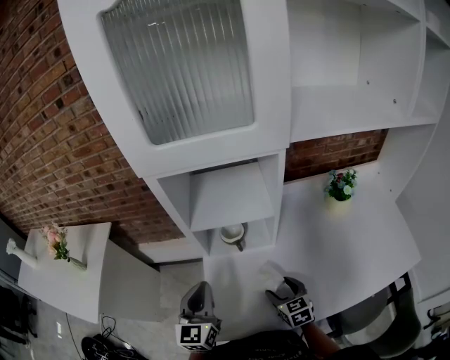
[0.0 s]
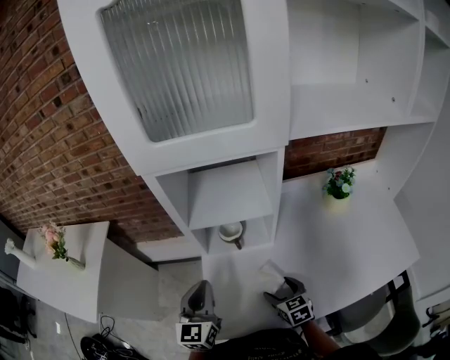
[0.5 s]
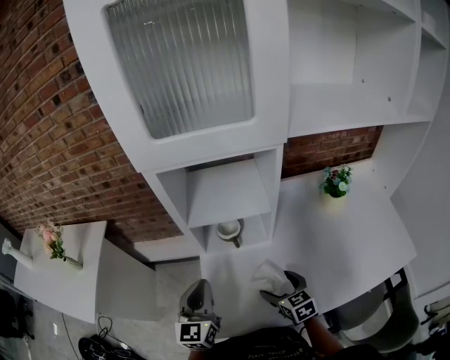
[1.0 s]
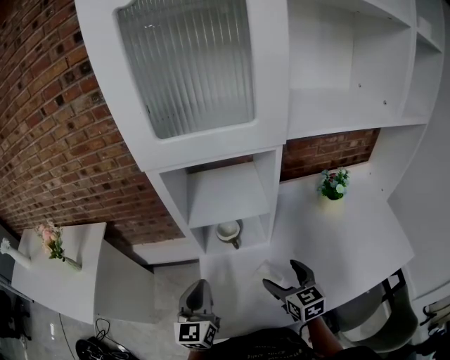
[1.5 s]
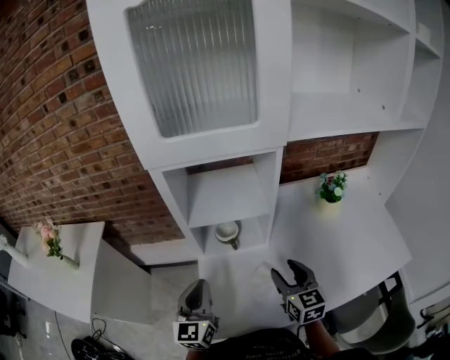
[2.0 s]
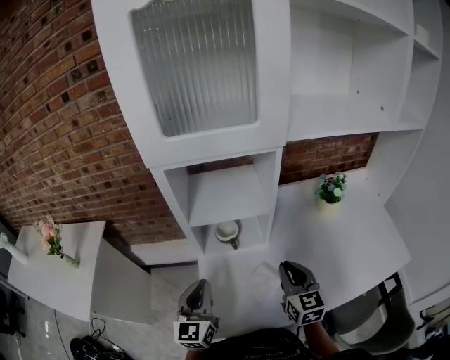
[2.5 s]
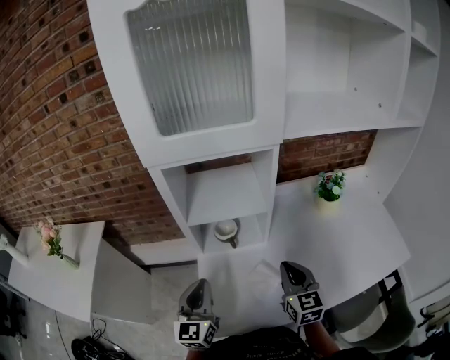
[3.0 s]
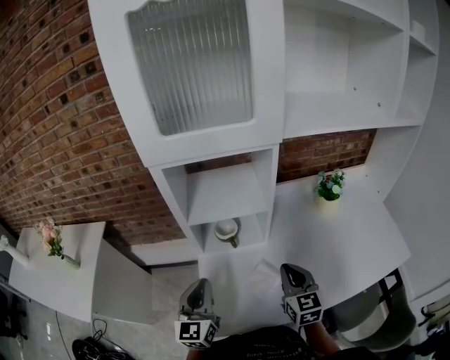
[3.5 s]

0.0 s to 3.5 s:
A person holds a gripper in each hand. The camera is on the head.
0.0 to 2.0 s: The right gripper shifts approximately 15 cm upward.
2.0 to 3.5 s: The right gripper closes.

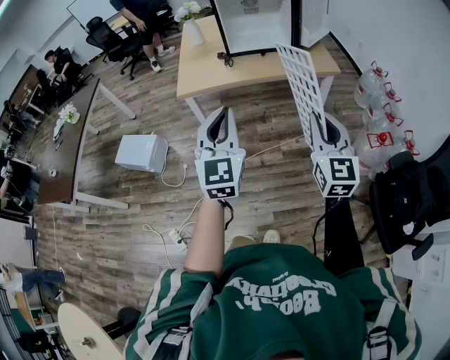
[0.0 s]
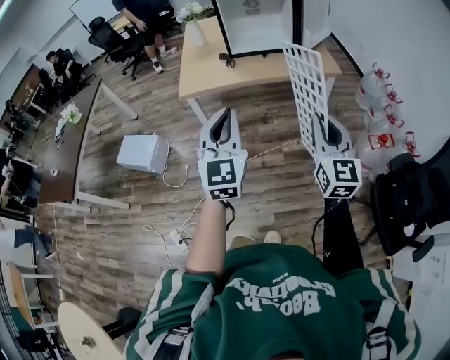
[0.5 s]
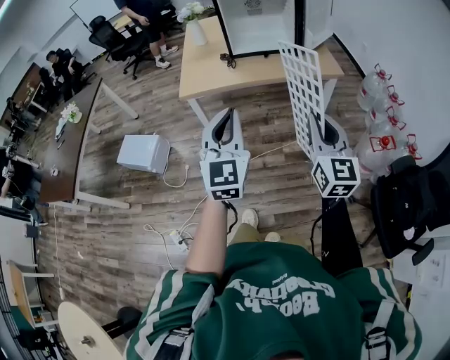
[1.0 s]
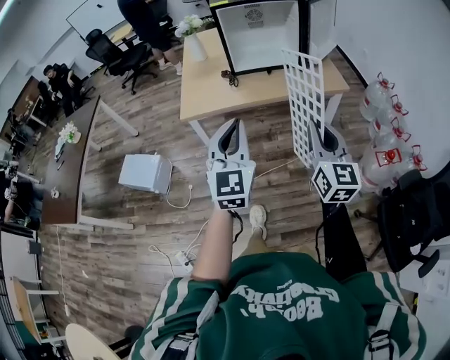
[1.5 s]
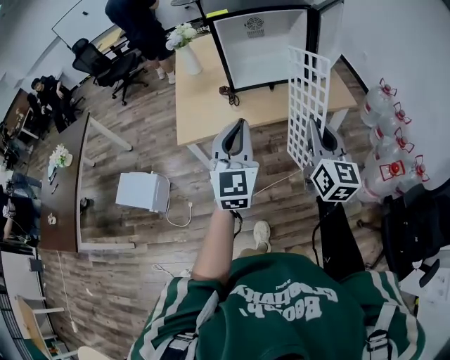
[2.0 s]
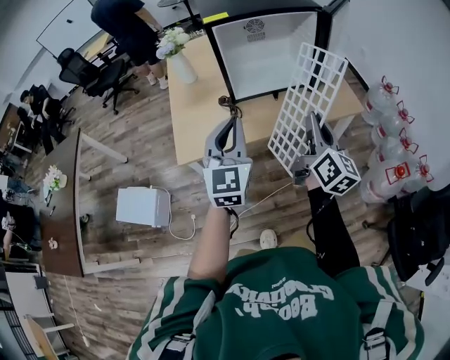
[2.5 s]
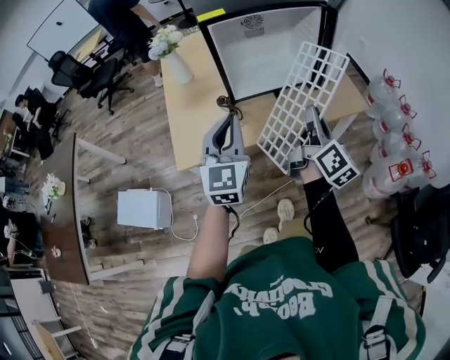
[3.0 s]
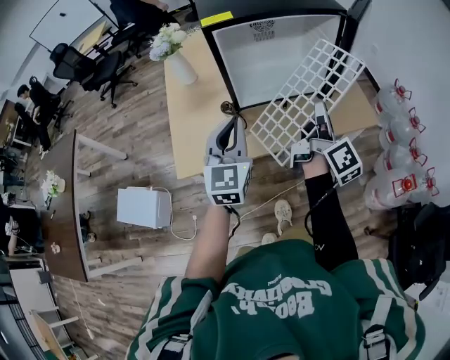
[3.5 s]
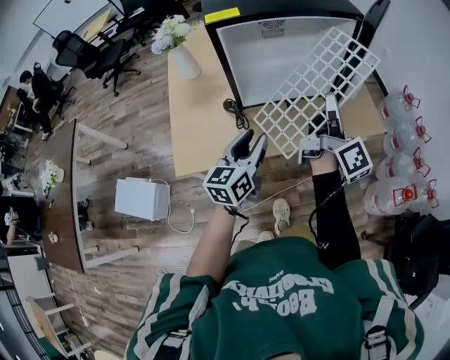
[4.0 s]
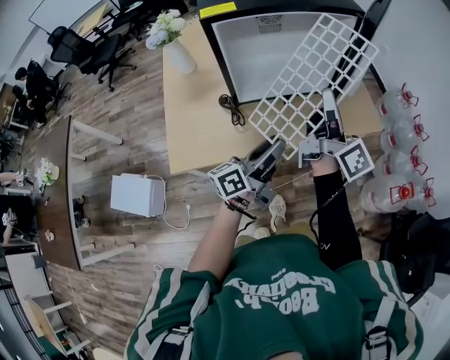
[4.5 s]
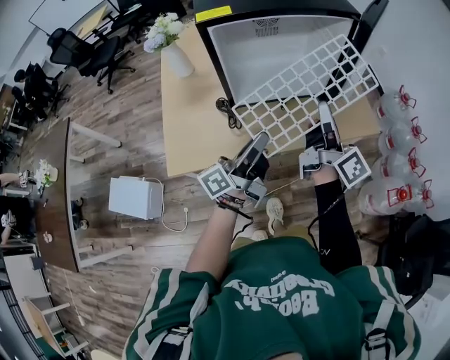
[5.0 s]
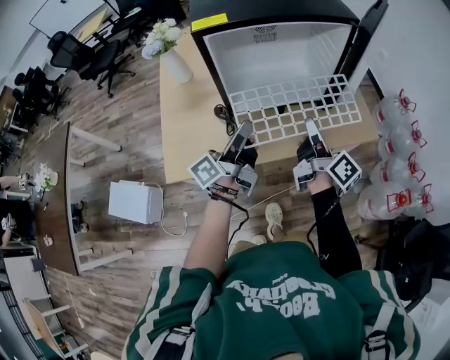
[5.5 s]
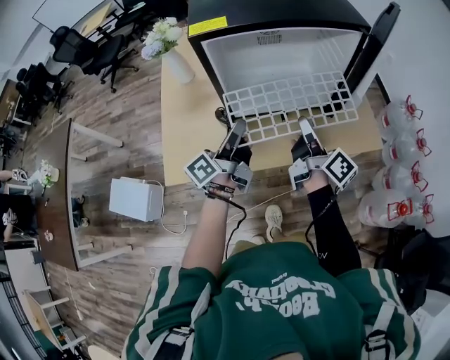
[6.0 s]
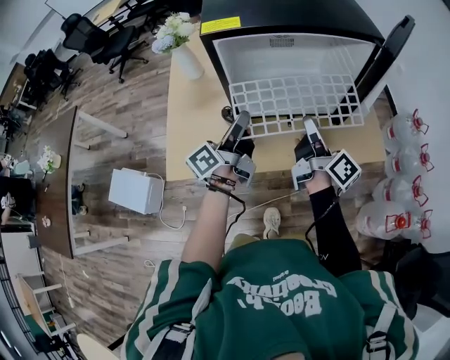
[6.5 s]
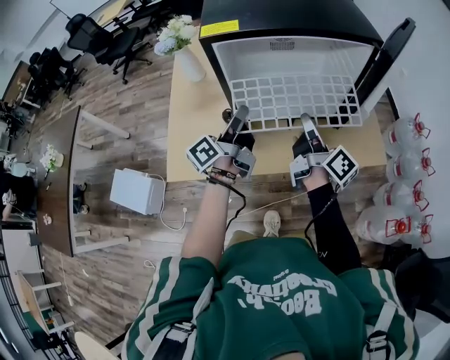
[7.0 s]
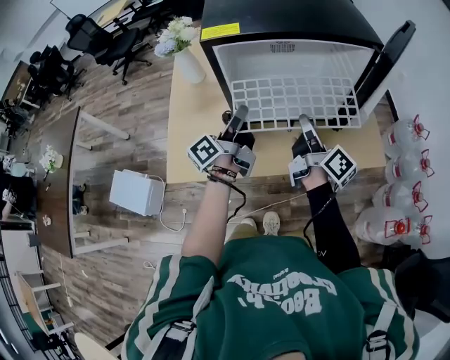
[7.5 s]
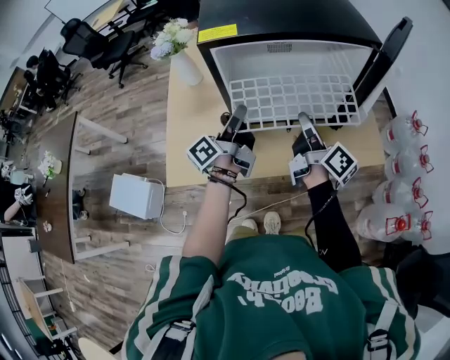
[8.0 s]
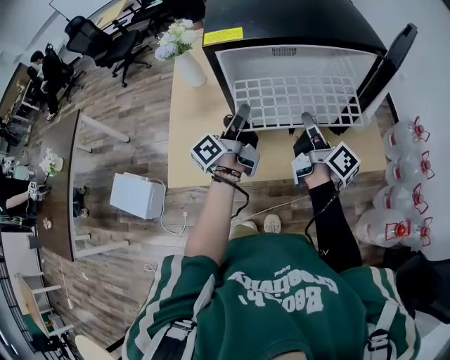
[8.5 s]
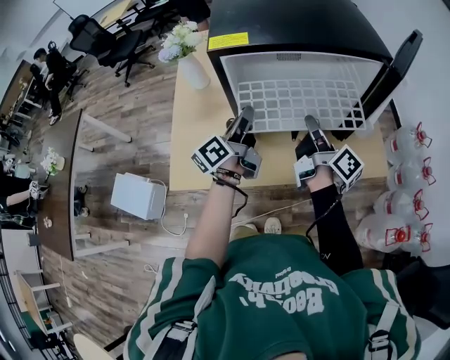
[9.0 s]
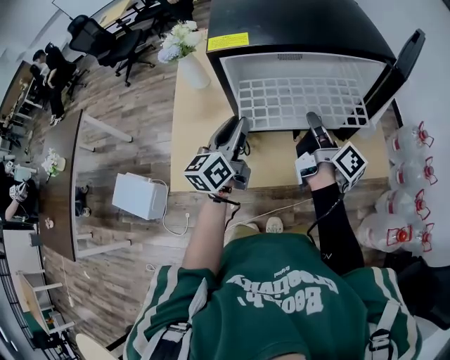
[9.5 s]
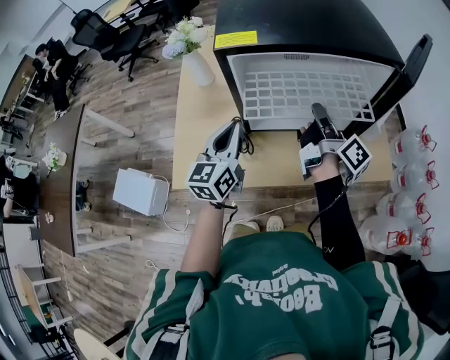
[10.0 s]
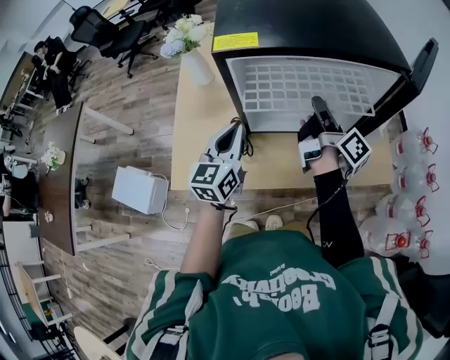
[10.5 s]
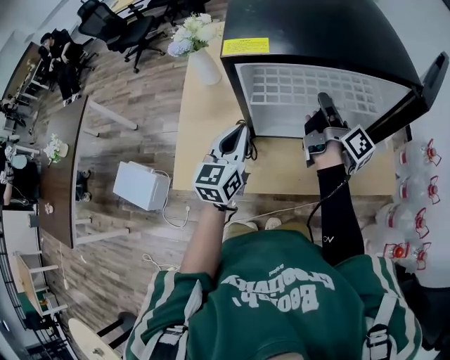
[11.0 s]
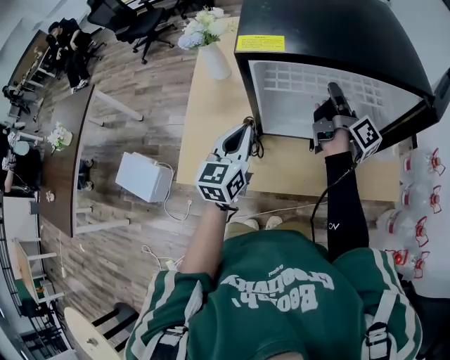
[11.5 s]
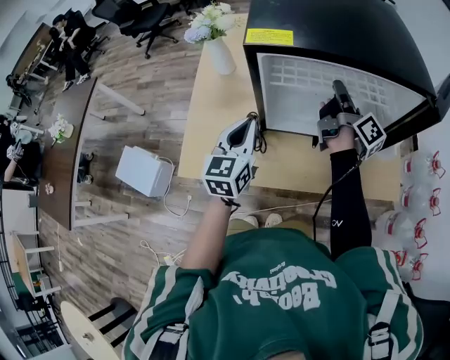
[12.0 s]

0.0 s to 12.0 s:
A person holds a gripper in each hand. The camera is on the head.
0.0 to 2.0 s: The grippers both shift forward by roughly 25 cm. The right gripper swivels some 20 degrees.
2.0 to 4.0 s: The left gripper heads forward and downward, covering some 30 cm, rotates approximately 40 degrees, and opens up. Meanwhile the right gripper shifts about 30 cm forward, and rolls clockwise, seen from behind, by roughly 50 degrees.
4.0 to 6.0 s: The right gripper moves downward, roughly 10 cm, and swivels about 30 degrees; the left gripper is displaced forward by some 10 cm, rolls counterclockwise, seen from behind, by about 40 degrees, and closes up.
6.0 to 8.0 s: The left gripper goes roughly 5 cm forward.
8.0 to 10.0 s: The left gripper changes place by roughly 5 cm, and rotates around the line of its fingers by roughly 60 degrees, clockwise from behind. Meanwhile the right gripper moves forward, about 5 cm.
10.0 to 12.0 s: The right gripper shifts roughly 10 cm forward.

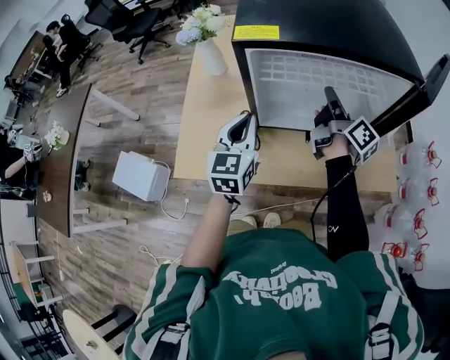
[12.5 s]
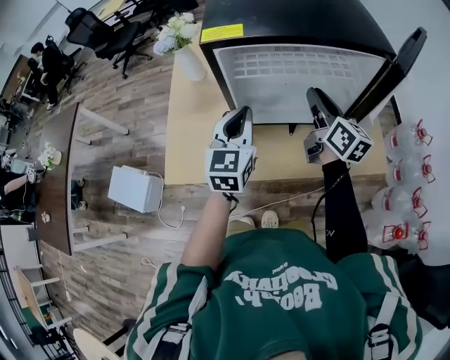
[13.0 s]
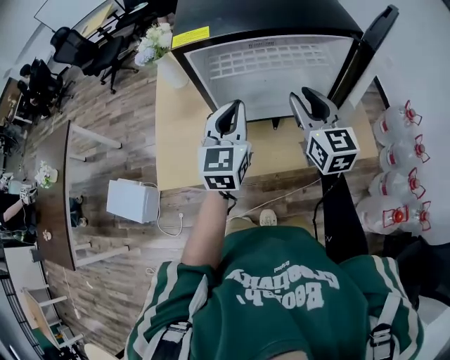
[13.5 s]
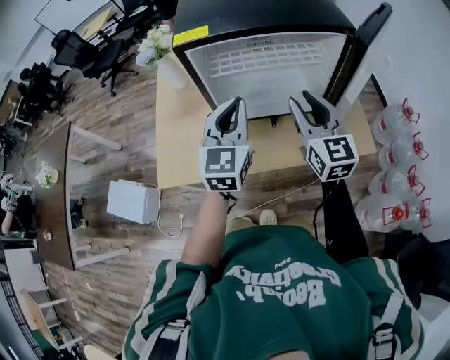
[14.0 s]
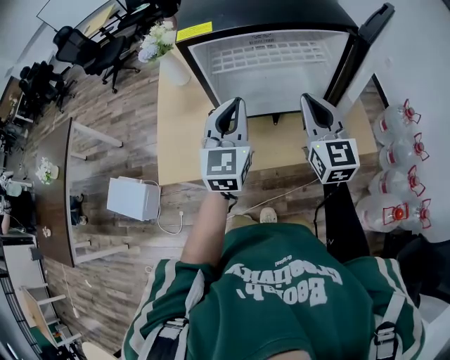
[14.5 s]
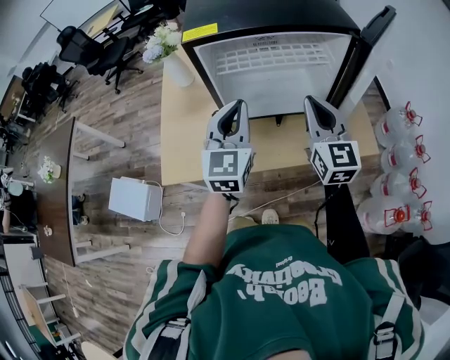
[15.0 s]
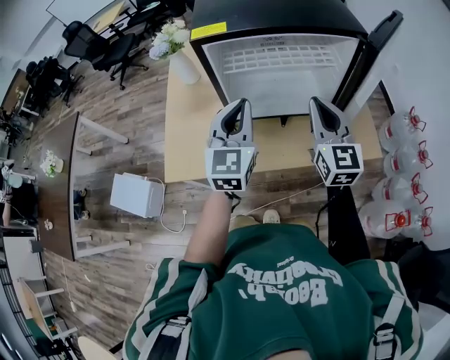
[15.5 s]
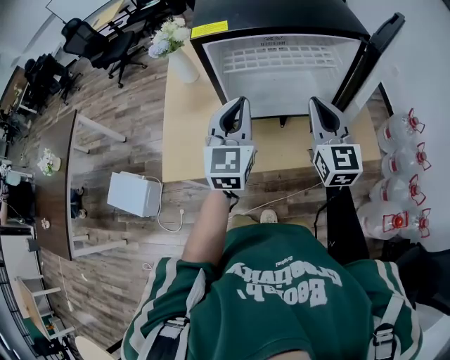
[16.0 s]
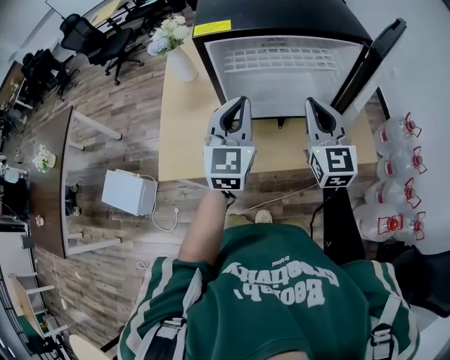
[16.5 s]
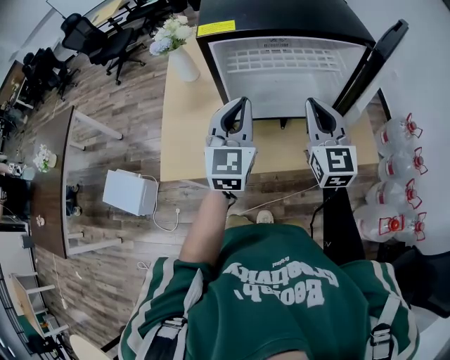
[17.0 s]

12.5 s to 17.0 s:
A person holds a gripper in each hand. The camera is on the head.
12.5 to 14.5 s: The right gripper travels backward and upward by approximately 15 cm, and twists roughly 70 degrees counterclockwise, seen from behind. Meanwhile the left gripper is displaced to the right and upward by about 10 cm.
14.5 to 17.0 s: The grippers move only a little.

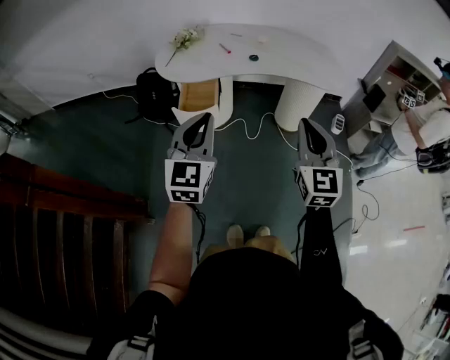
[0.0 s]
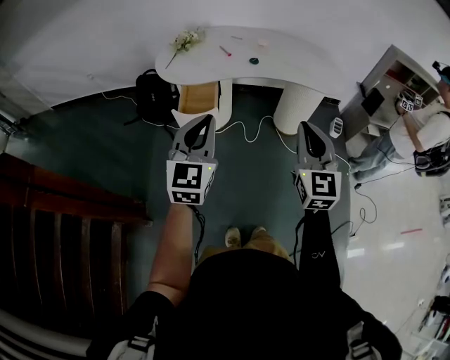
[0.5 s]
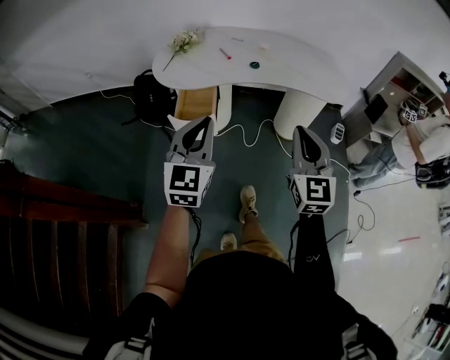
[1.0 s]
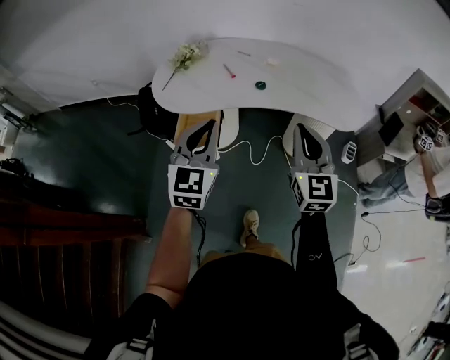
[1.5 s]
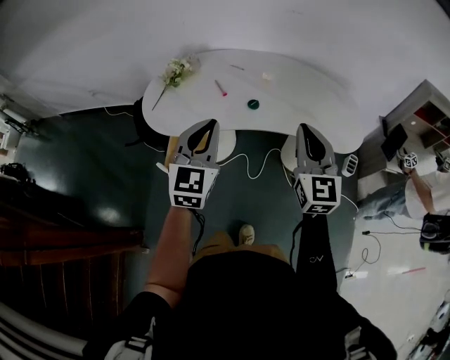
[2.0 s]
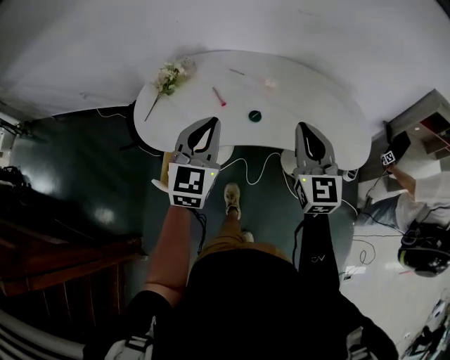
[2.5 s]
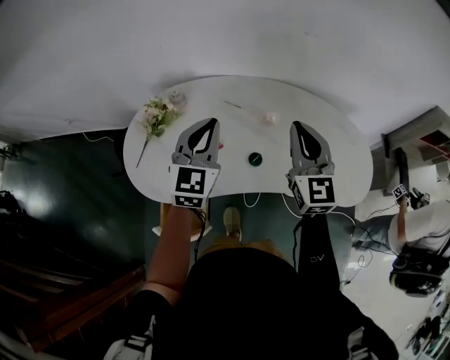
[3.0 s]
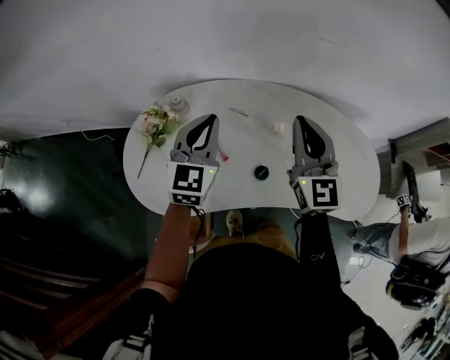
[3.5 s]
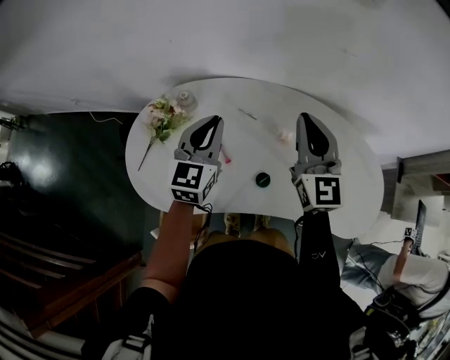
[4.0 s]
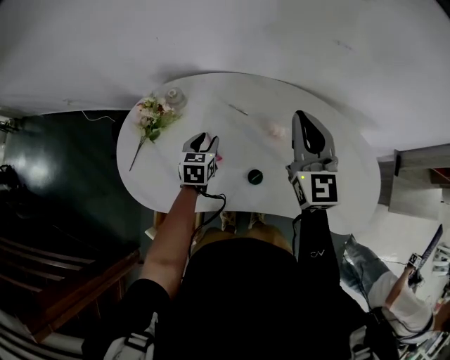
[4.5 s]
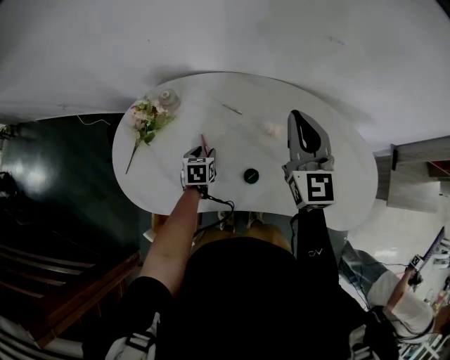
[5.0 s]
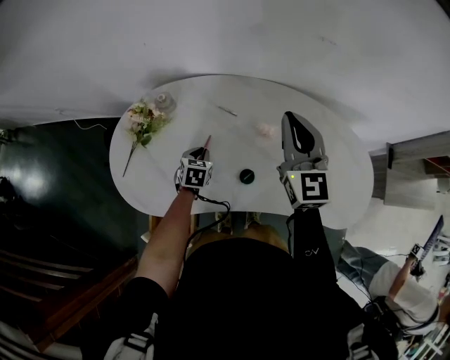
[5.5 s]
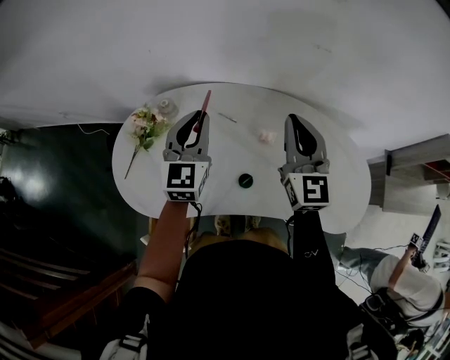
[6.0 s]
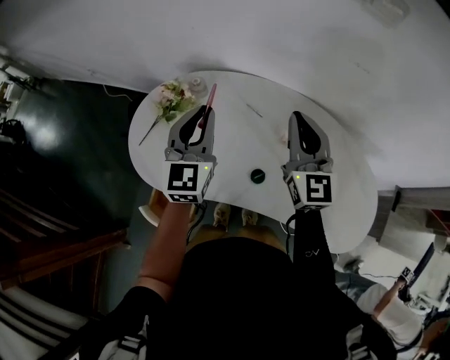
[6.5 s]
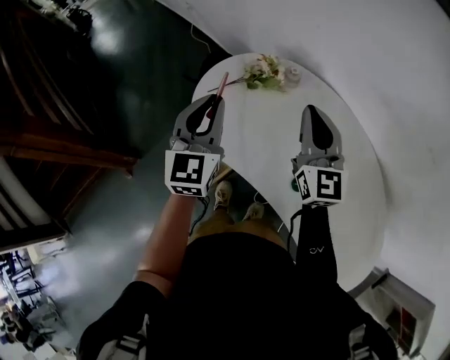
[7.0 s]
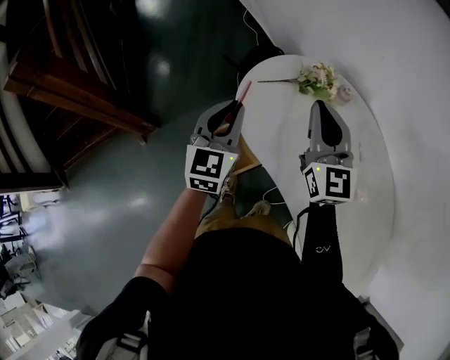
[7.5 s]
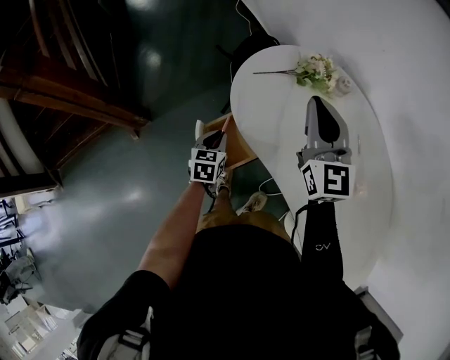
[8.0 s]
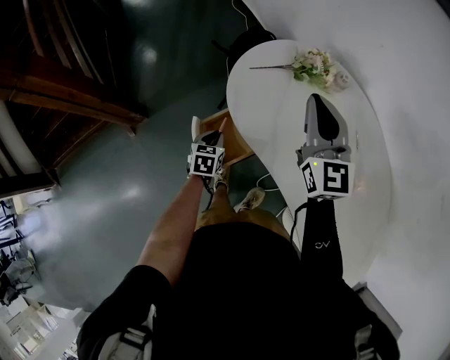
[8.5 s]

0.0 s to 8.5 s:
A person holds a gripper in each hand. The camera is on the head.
0.0 to 2.0 s: The two grippers go roughly 35 cm forward.
2.0 to 4.0 s: The pair of grippers is taken forward, approximately 40 cm.
4.0 to 6.5 s: The left gripper travels downward and back again, some 30 cm each way, and opens, then closes again.
6.5 to 8.5 s: The right gripper changes place by roughly 30 cm, and changes its angle by approximately 50 degrees, while the left gripper moves downward, some 35 cm, and points its fingers roughly 50 degrees further downward.
